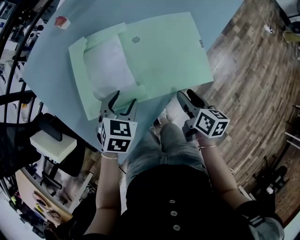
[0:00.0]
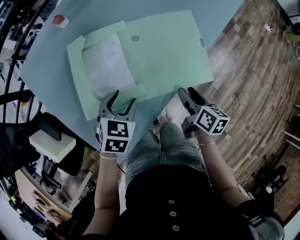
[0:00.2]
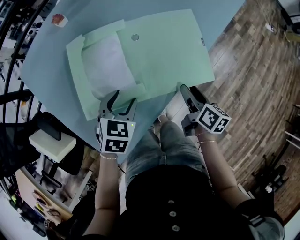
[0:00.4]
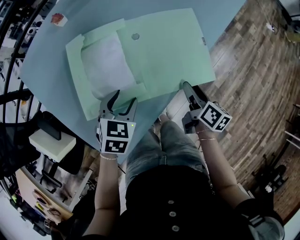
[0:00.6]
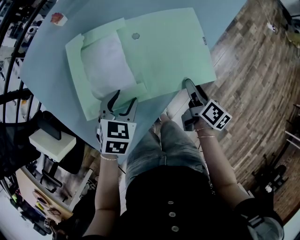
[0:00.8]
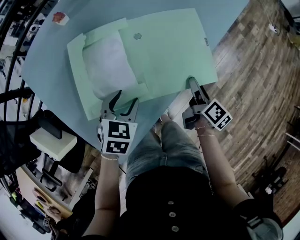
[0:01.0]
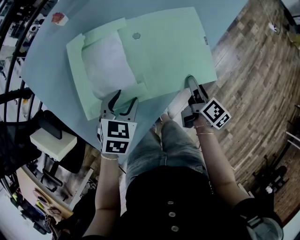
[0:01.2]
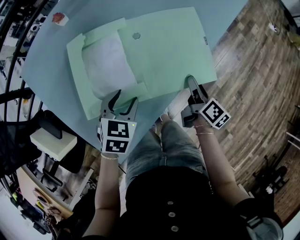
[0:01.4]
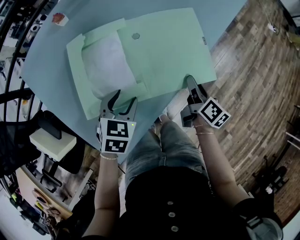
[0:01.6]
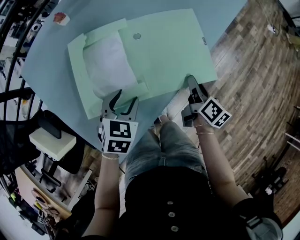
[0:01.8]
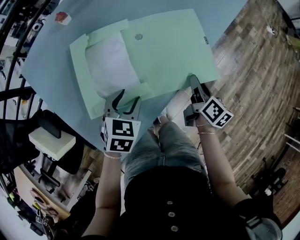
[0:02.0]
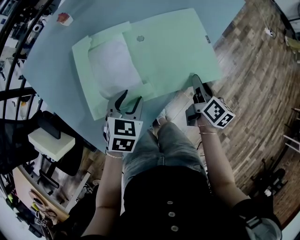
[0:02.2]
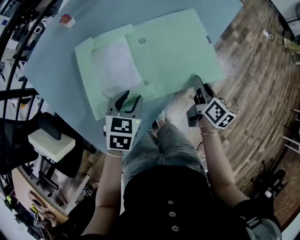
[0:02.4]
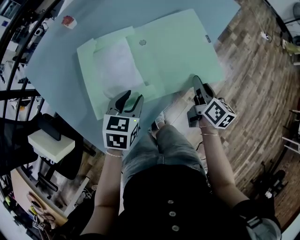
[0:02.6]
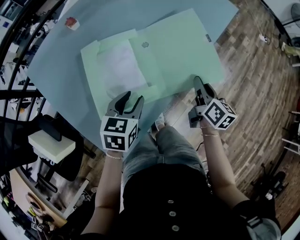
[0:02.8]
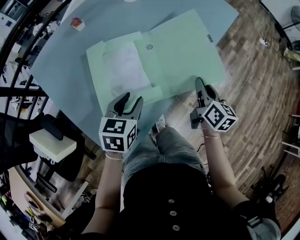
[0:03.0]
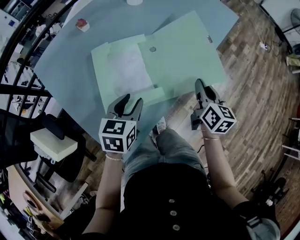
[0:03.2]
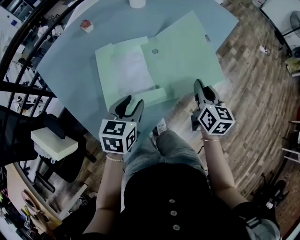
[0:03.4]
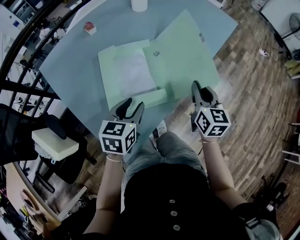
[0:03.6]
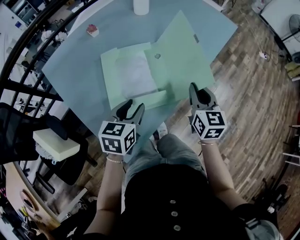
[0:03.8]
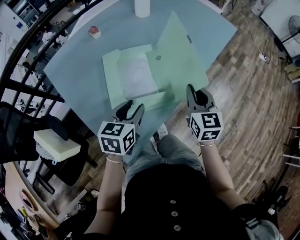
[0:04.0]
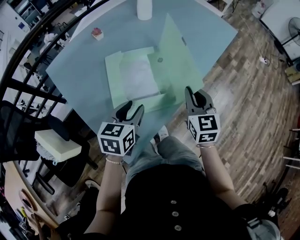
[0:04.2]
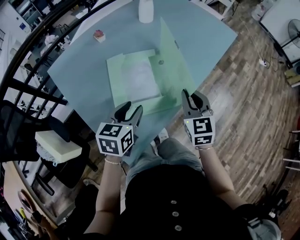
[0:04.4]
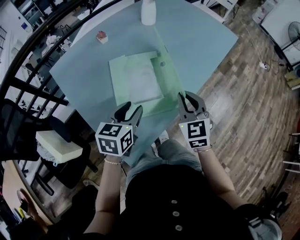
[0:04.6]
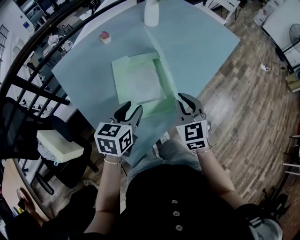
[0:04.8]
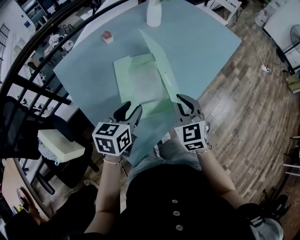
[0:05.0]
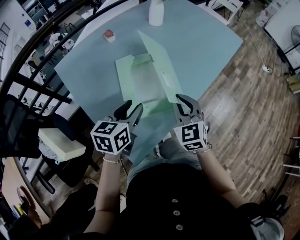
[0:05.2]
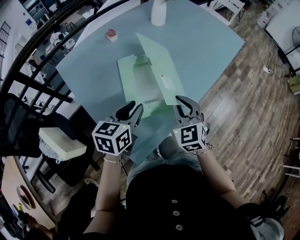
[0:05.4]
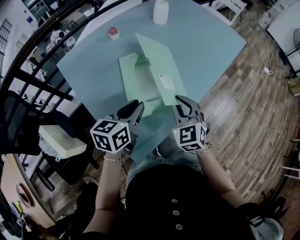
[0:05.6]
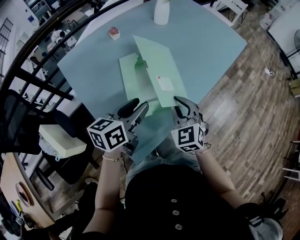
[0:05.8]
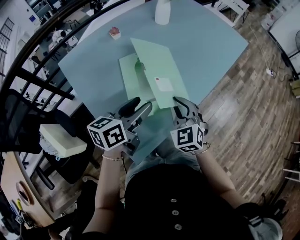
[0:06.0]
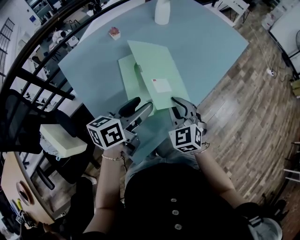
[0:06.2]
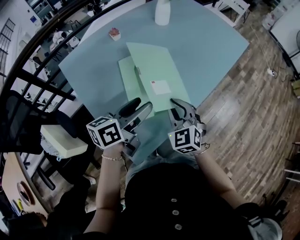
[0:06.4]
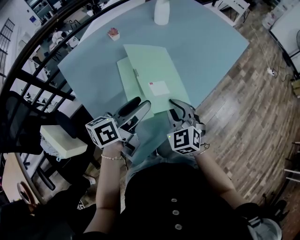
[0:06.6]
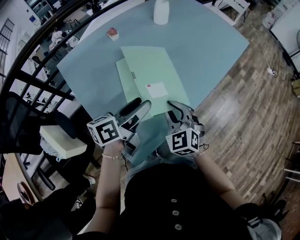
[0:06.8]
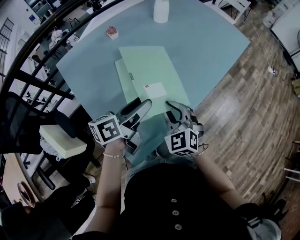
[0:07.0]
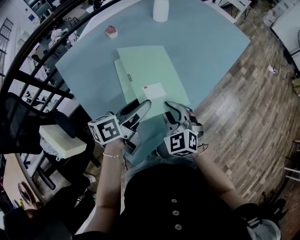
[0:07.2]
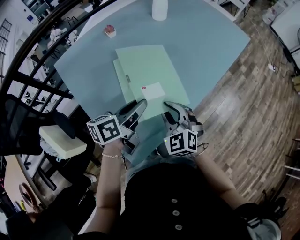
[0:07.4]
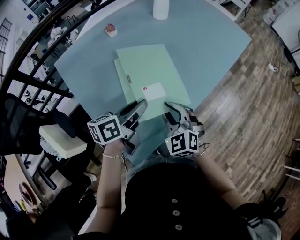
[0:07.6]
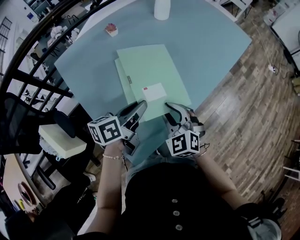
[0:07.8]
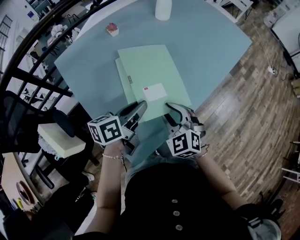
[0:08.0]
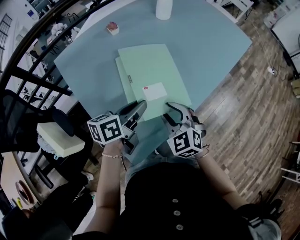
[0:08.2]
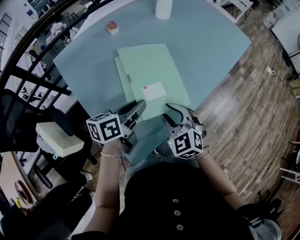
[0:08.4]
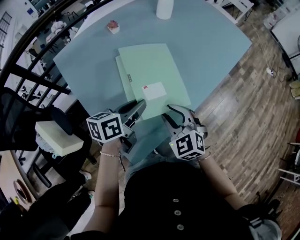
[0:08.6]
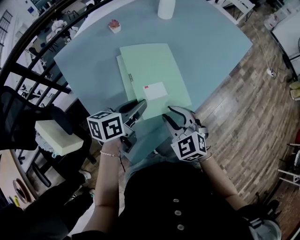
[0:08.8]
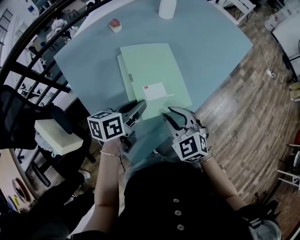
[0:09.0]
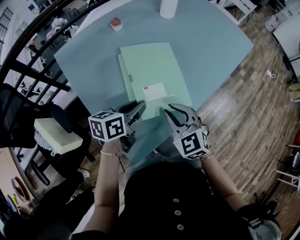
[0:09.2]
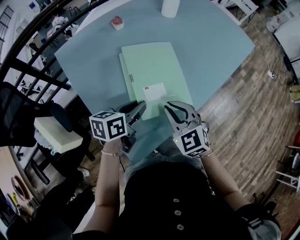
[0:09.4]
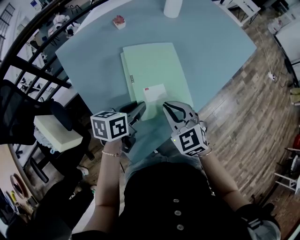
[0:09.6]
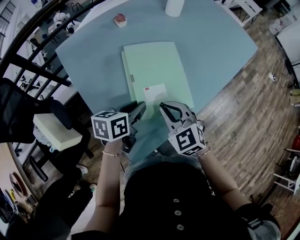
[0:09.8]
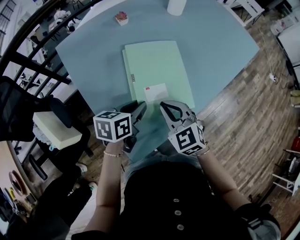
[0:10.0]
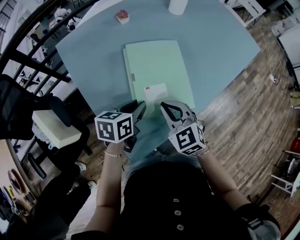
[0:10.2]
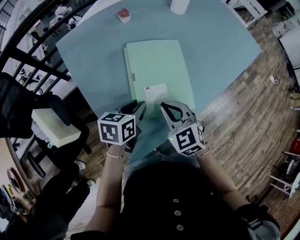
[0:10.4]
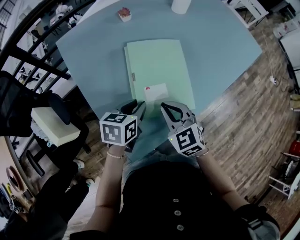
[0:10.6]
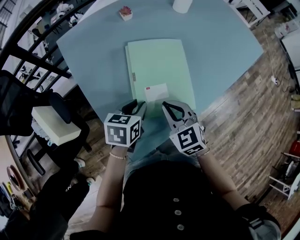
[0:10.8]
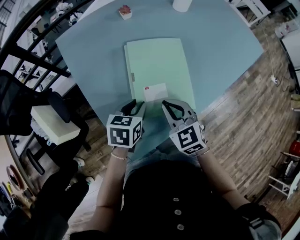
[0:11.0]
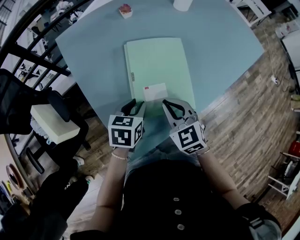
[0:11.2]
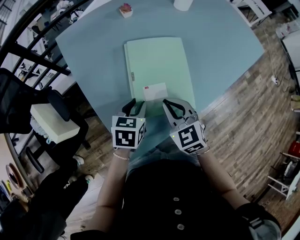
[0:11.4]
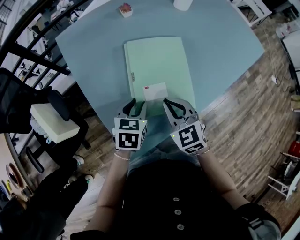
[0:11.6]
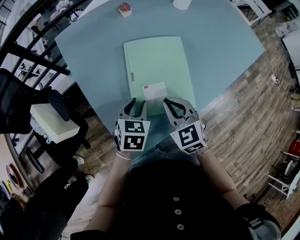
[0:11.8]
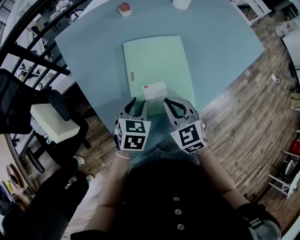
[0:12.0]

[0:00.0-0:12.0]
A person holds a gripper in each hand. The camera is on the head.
0:00.0 to 0:01.6: The right gripper travels forward by roughly 5 cm, and turns by about 20 degrees.
0:01.6 to 0:03.0: The left gripper travels upward by approximately 5 cm, and rotates about 20 degrees, while the right gripper moves upward, roughly 10 cm, swivels roughly 20 degrees, and closes.
0:03.0 to 0:04.4: The left gripper moves about 10 cm; the right gripper moves to the left and upward, approximately 15 cm, and rolls counterclockwise, seen from behind, by some 50 degrees.
0:04.4 to 0:06.0: The left gripper swivels approximately 30 degrees, while the right gripper goes some 10 cm to the left, and changes its angle by some 20 degrees.
0:06.0 to 0:07.6: The left gripper closes.
0:07.6 to 0:09.0: There are only small adjustments of the grippers.
0:09.0 to 0:10.4: The left gripper shifts by roughly 5 cm. Meanwhile the right gripper changes place by roughly 5 cm, and closes its fingers.
0:10.4 to 0:12.0: The left gripper changes its angle by roughly 30 degrees.

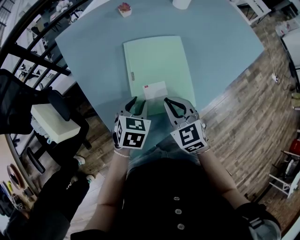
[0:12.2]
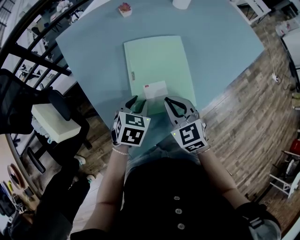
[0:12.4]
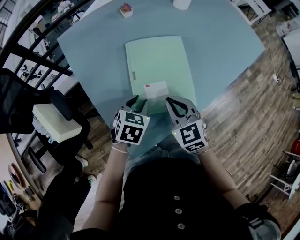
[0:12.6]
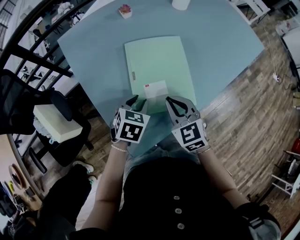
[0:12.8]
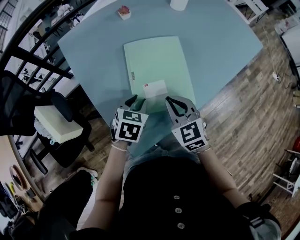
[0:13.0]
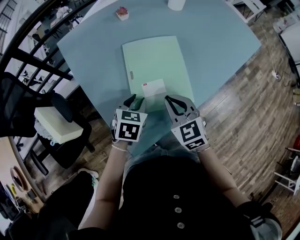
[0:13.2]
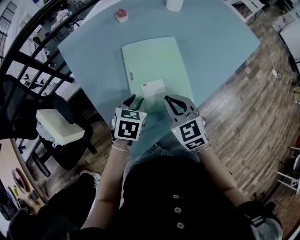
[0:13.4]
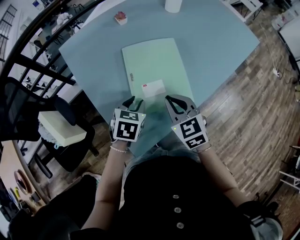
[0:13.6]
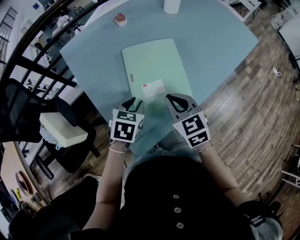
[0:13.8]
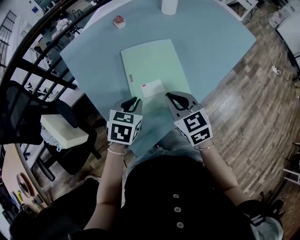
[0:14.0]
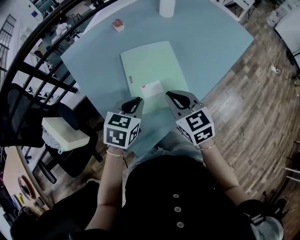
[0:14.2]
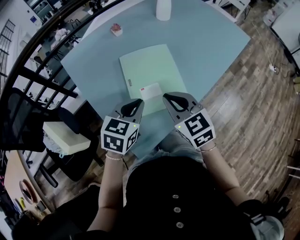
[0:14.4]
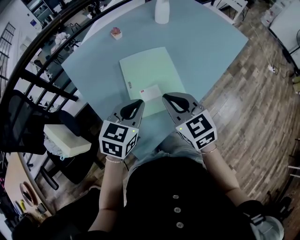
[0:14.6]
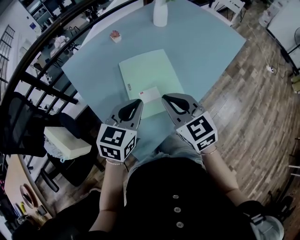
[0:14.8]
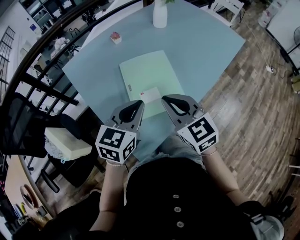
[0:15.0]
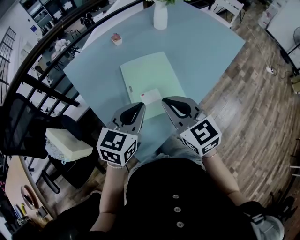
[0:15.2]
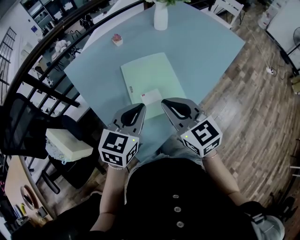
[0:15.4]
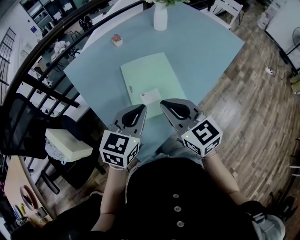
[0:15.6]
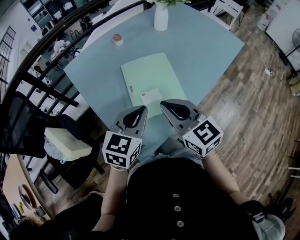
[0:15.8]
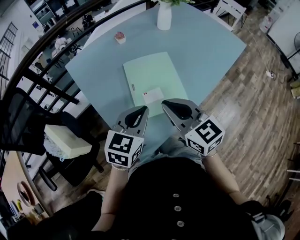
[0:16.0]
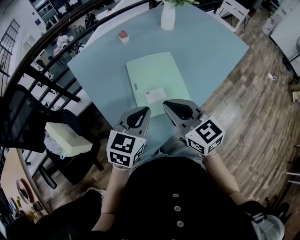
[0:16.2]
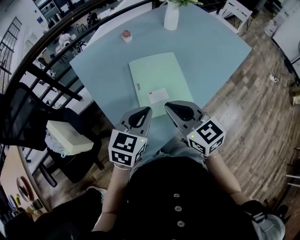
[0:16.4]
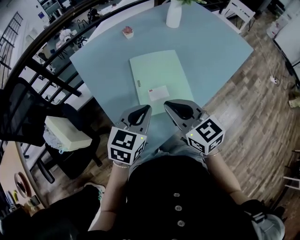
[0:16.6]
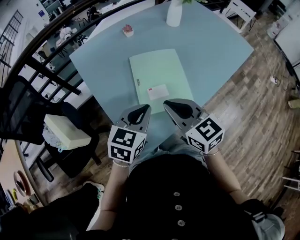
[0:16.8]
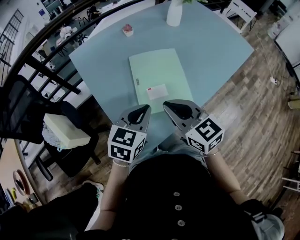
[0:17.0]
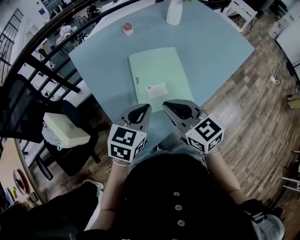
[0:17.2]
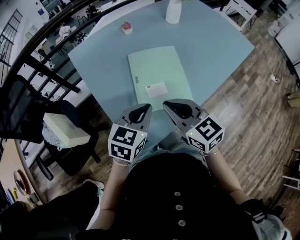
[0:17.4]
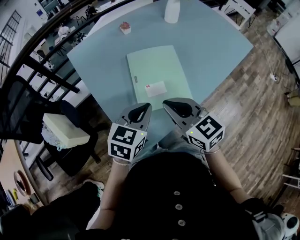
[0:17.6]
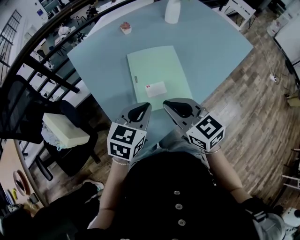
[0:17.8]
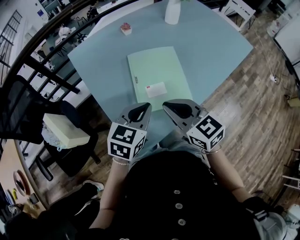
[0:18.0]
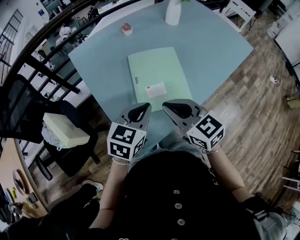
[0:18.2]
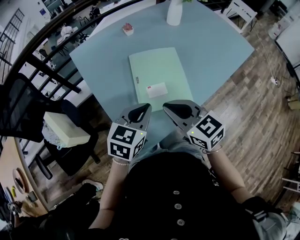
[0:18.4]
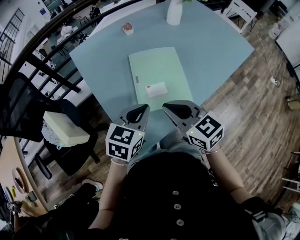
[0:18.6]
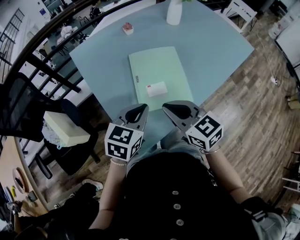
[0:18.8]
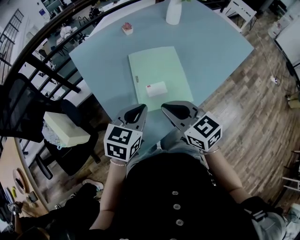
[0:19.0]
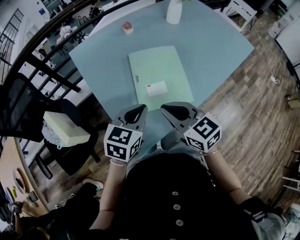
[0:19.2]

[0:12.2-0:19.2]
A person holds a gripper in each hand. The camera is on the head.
0:12.2 to 0:13.6: The grippers stay close to where they were, moving slightly.
0:13.6 to 0:15.0: Both grippers move upward, approximately 15 cm. The left gripper swivels approximately 30 degrees, and closes its fingers.
0:15.0 to 0:17.8: There are only small adjustments of the grippers.
0:17.8 to 0:19.2: The grippers make only small movements.

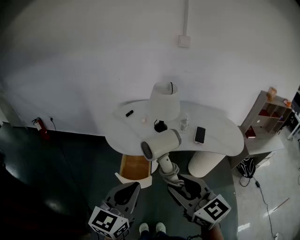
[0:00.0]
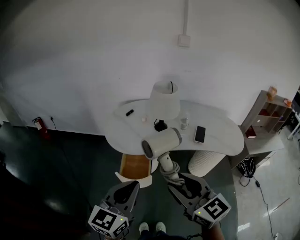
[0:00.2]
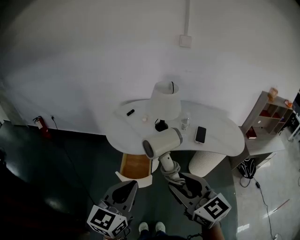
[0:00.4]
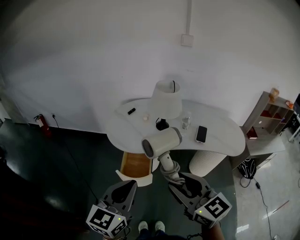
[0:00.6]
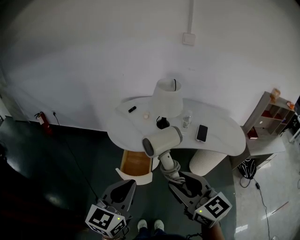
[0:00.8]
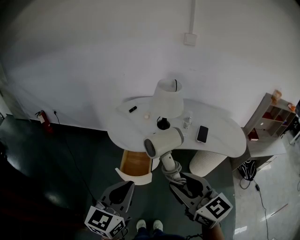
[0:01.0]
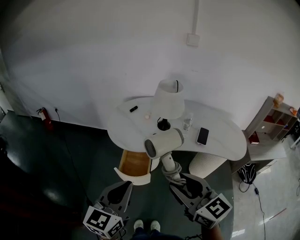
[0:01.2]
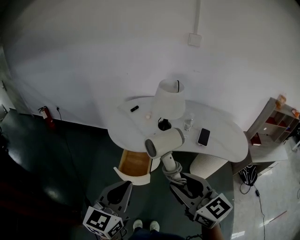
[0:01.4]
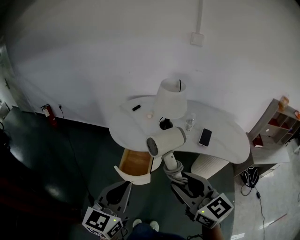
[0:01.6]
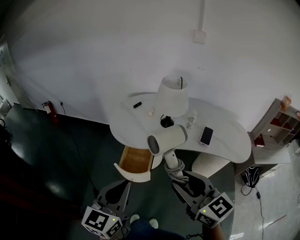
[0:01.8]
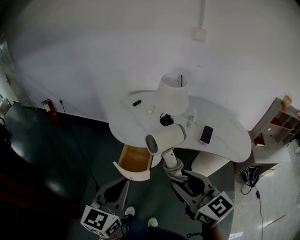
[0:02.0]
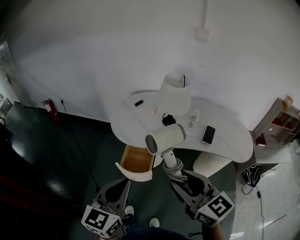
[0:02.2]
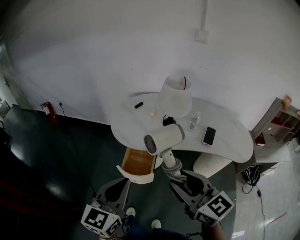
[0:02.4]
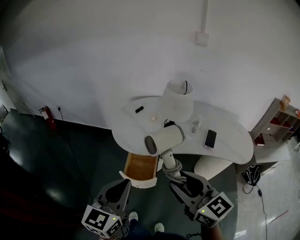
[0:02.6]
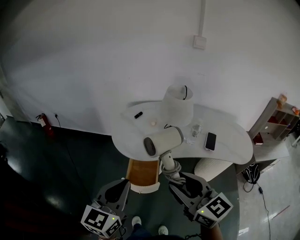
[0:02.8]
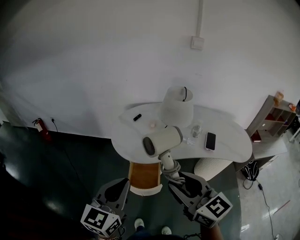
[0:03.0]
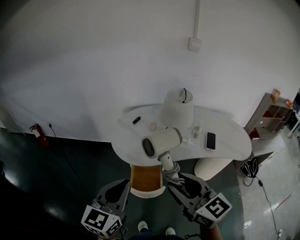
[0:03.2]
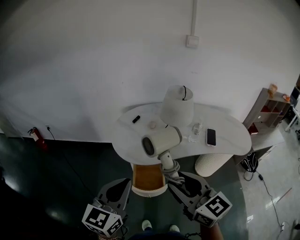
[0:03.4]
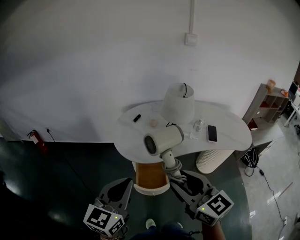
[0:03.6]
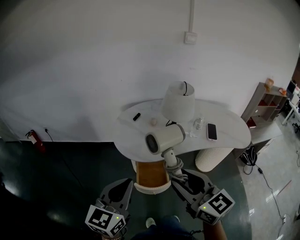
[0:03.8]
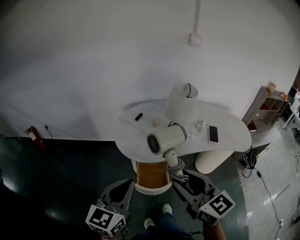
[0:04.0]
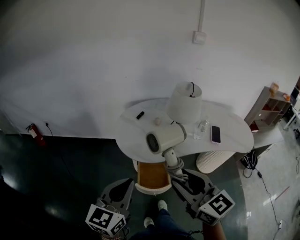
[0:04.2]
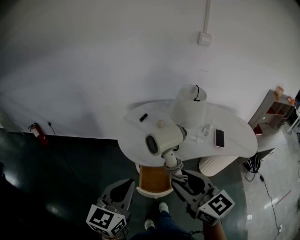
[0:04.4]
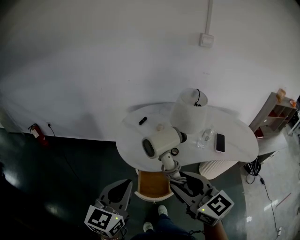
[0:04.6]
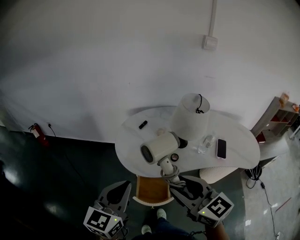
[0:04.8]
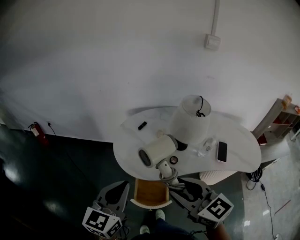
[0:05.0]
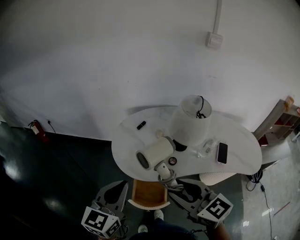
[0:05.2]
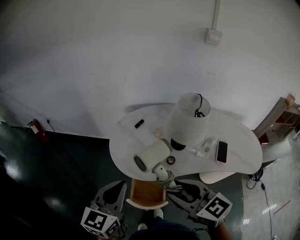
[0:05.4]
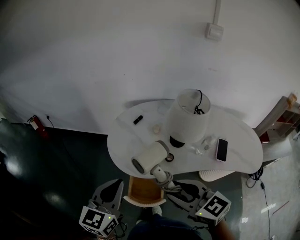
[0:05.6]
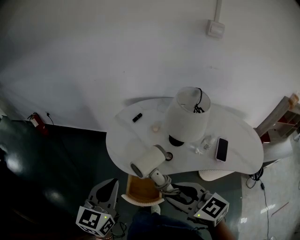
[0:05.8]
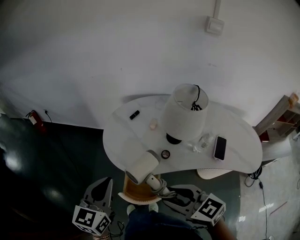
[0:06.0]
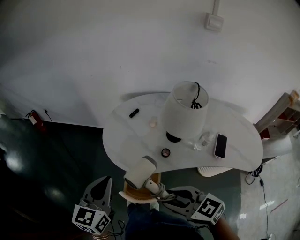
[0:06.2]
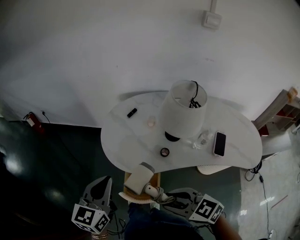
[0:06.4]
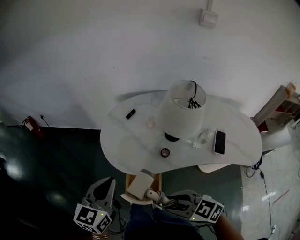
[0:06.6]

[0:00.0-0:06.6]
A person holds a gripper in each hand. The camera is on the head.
0:00.0 to 0:01.6: The grippers move only a little.
0:01.6 to 0:03.2: The left gripper shifts some 15 cm forward and to the left. The right gripper is displaced to the left and forward by roughly 15 cm.
0:03.2 to 0:05.0: The grippers both shift forward by approximately 10 cm.
0:05.0 to 0:06.6: The right gripper goes roughly 15 cm downward, and swivels some 40 degrees; the left gripper heads downward, covering about 5 cm.
